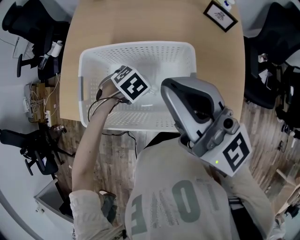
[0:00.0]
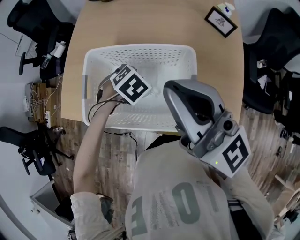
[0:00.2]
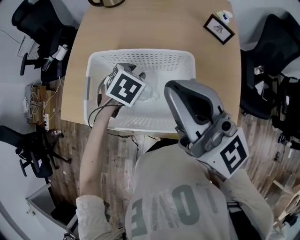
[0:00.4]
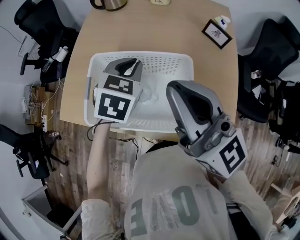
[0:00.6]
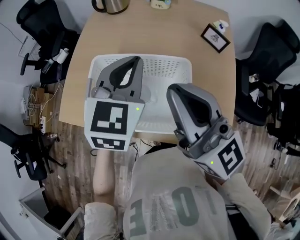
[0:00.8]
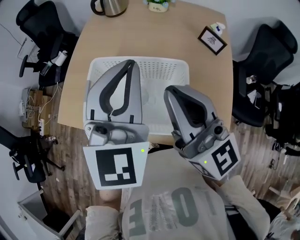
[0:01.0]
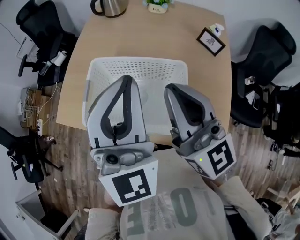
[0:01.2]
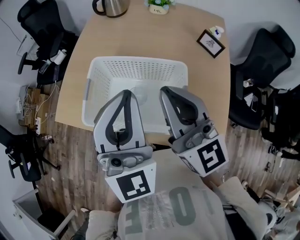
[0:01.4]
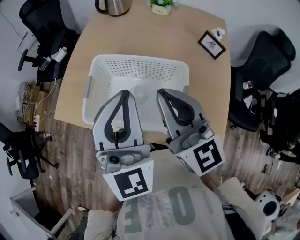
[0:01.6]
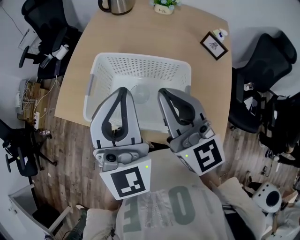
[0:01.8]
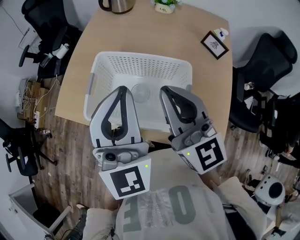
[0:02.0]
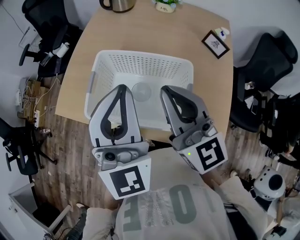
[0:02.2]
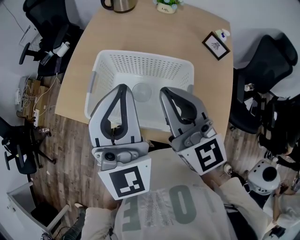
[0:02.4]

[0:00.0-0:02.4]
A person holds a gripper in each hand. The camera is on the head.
0:00.0 to 0:01.2: The left gripper travels upward by roughly 40 cm, angles its fingers upward, by about 90 degrees, and closes.
0:01.2 to 0:02.4: The right gripper shifts by roughly 5 cm.

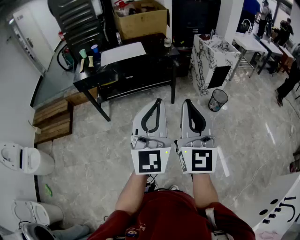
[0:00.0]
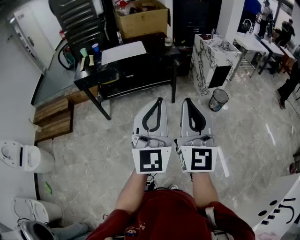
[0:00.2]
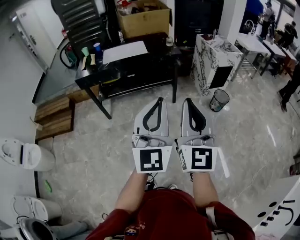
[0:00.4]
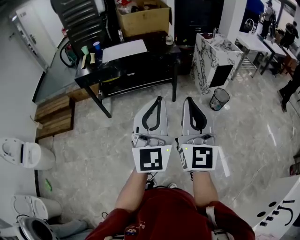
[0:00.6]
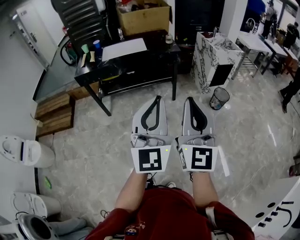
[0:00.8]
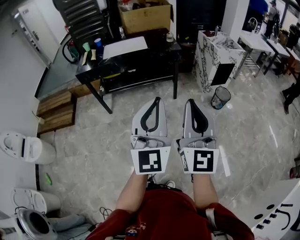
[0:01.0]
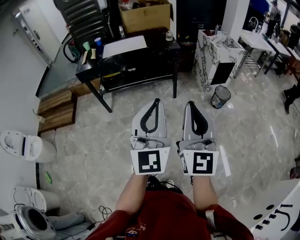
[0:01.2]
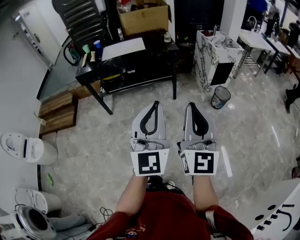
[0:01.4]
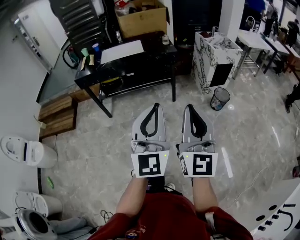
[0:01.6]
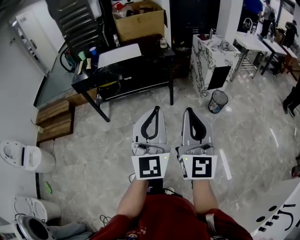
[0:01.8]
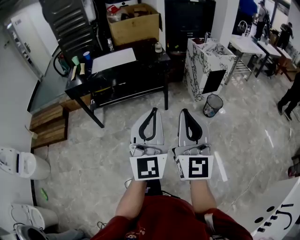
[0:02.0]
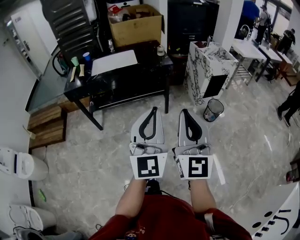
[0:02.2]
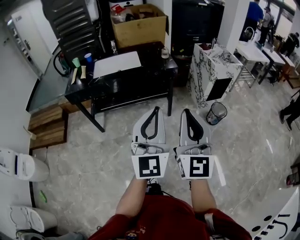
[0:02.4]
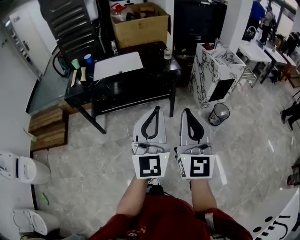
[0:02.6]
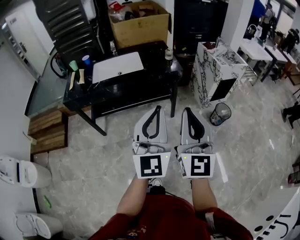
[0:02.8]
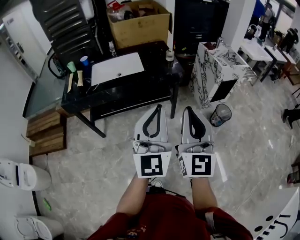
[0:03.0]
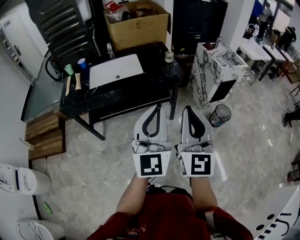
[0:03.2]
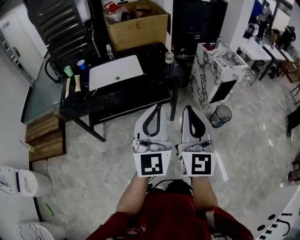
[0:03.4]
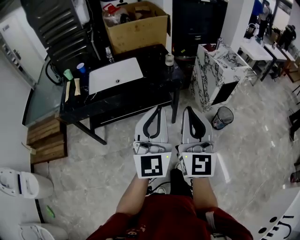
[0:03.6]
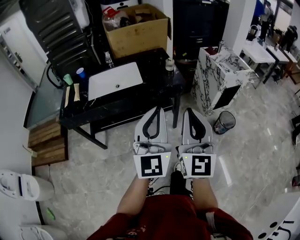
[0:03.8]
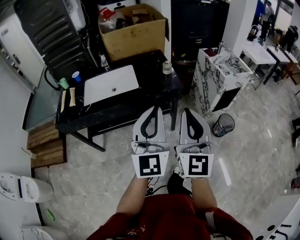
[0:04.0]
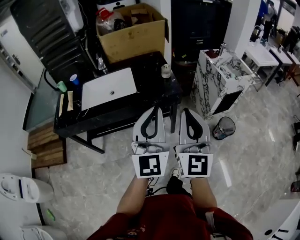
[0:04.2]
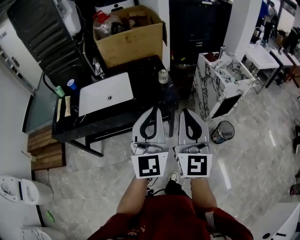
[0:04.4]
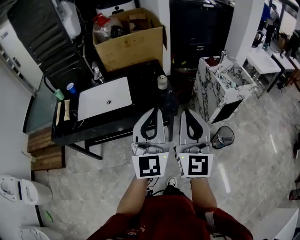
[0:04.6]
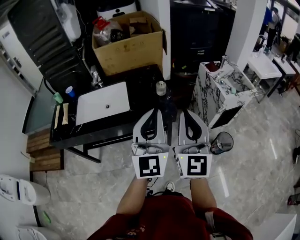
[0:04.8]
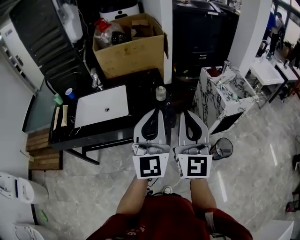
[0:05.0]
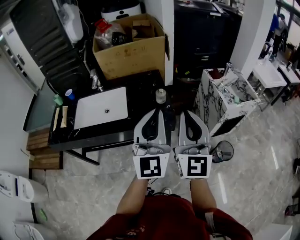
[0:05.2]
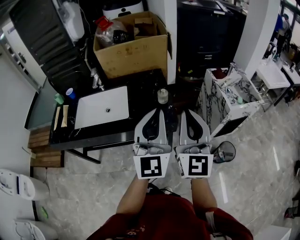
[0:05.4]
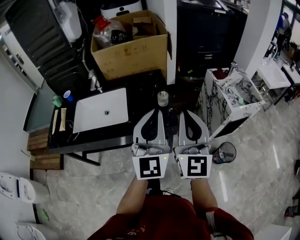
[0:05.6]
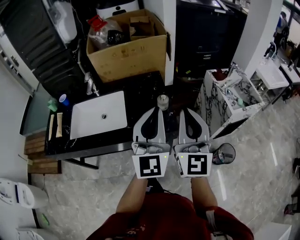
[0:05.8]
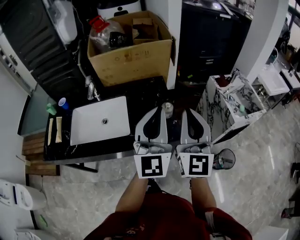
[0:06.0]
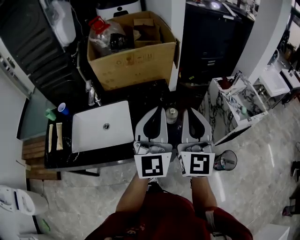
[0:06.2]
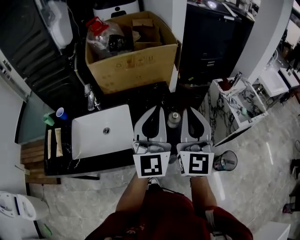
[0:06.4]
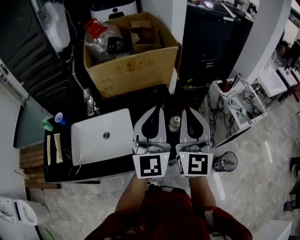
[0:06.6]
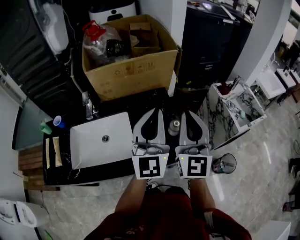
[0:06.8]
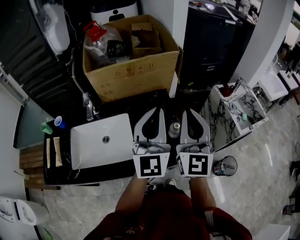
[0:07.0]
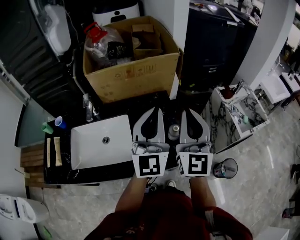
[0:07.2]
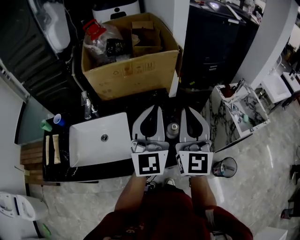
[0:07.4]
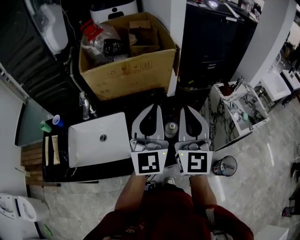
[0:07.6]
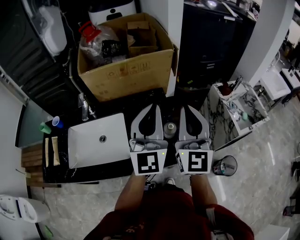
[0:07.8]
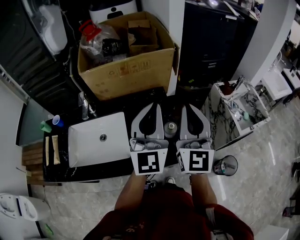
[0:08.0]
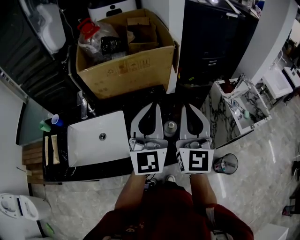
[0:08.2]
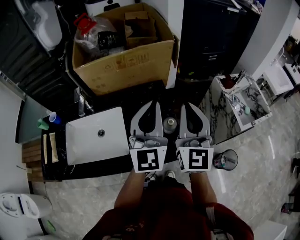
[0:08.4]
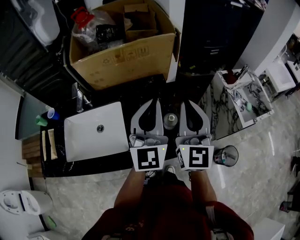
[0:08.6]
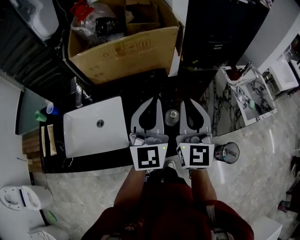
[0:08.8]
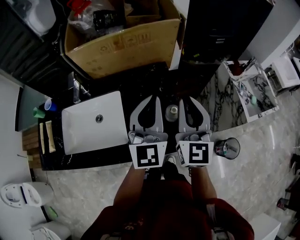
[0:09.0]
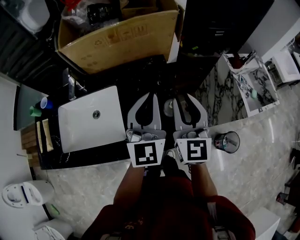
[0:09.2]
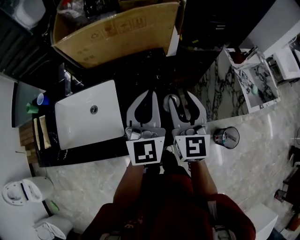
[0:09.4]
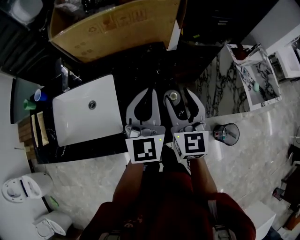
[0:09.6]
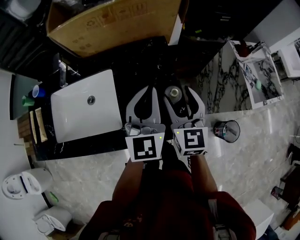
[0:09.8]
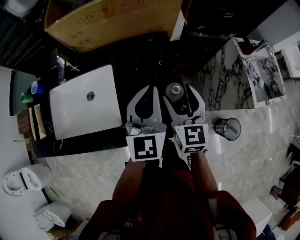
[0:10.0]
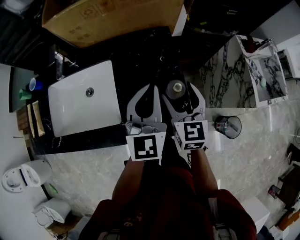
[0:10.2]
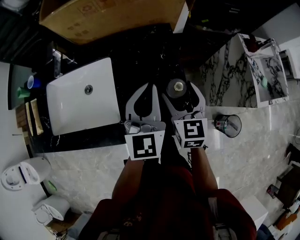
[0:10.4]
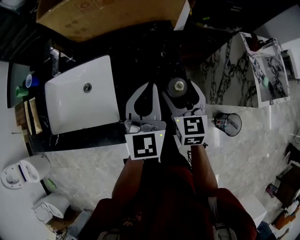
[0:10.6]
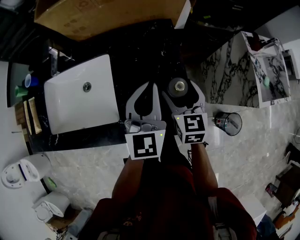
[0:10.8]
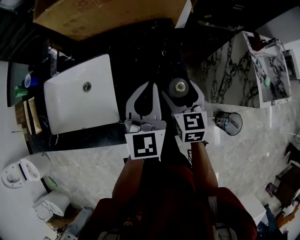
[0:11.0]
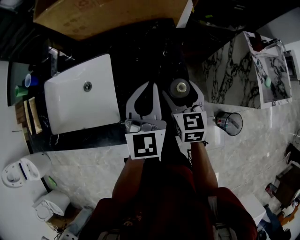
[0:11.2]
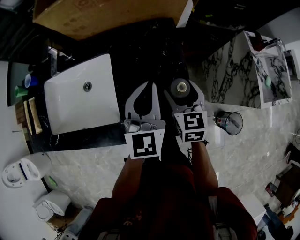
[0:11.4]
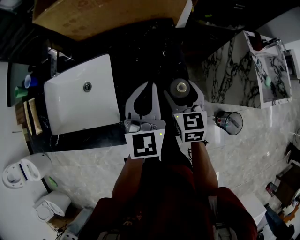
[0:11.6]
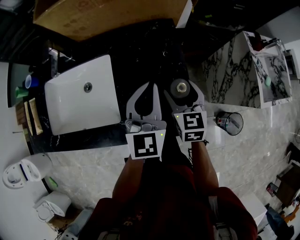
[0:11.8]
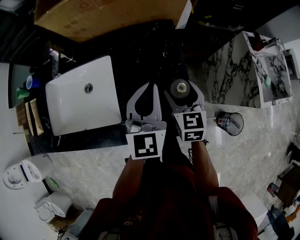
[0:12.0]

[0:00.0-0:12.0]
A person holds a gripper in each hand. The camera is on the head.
0:00.0 to 0:01.6: Both grippers move to the right, approximately 10 cm.
0:01.6 to 0:03.0: The two grippers go about 30 cm forward.
0:03.0 to 0:04.4: The grippers both shift forward by about 25 cm.
0:04.4 to 0:06.0: The two grippers go some 25 cm forward.
0:06.0 to 0:07.6: The grippers both shift forward by about 15 cm.
0:07.6 to 0:09.0: Both grippers travel together downward, approximately 10 cm.
0:09.0 to 0:10.4: The left gripper is displaced downward by some 10 cm; the right gripper shifts some 20 cm downward, changes its angle by approximately 30 degrees, and opens up.
0:10.4 to 0:12.0: The grippers move only a little.

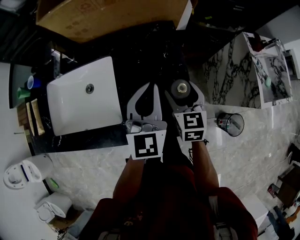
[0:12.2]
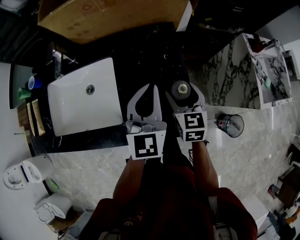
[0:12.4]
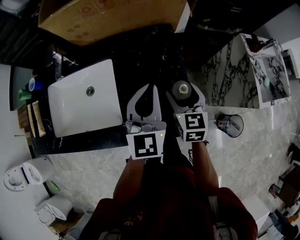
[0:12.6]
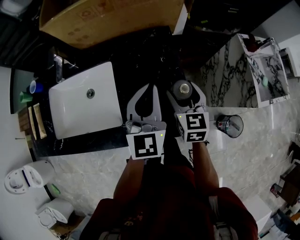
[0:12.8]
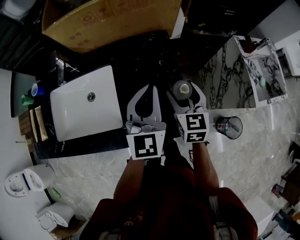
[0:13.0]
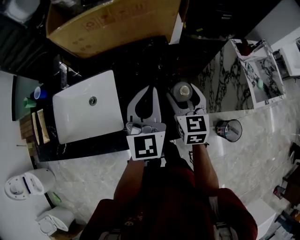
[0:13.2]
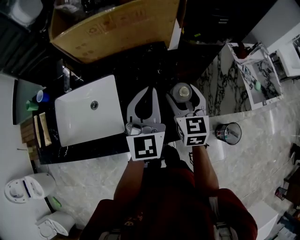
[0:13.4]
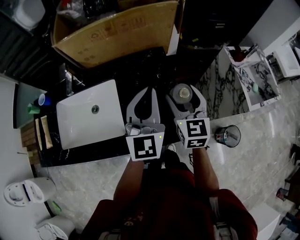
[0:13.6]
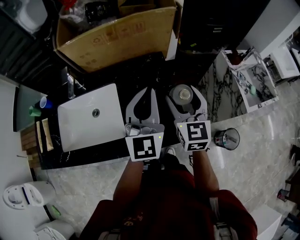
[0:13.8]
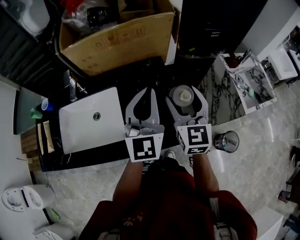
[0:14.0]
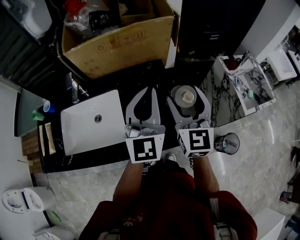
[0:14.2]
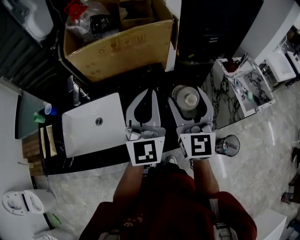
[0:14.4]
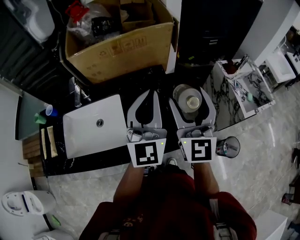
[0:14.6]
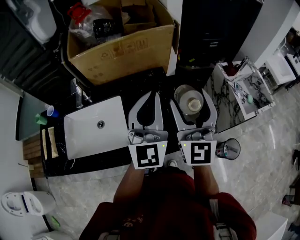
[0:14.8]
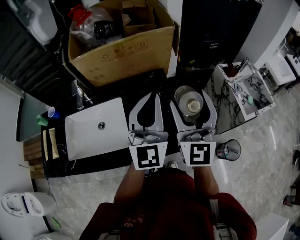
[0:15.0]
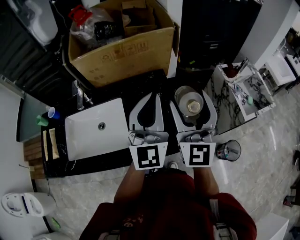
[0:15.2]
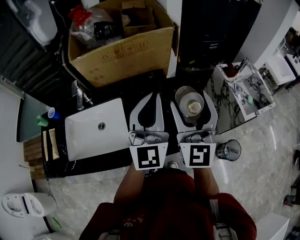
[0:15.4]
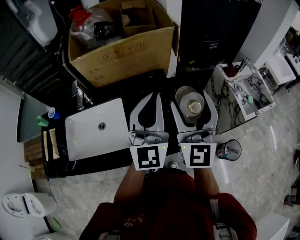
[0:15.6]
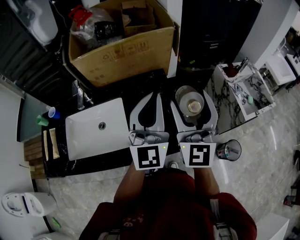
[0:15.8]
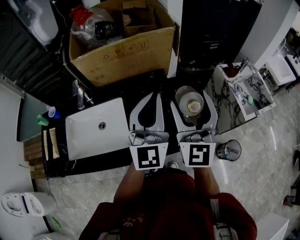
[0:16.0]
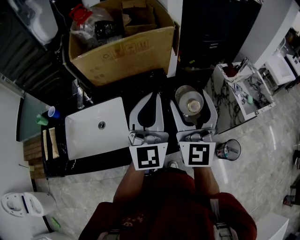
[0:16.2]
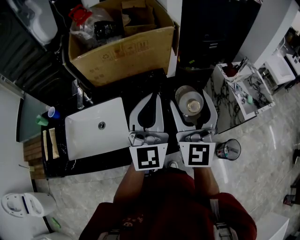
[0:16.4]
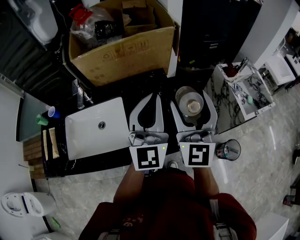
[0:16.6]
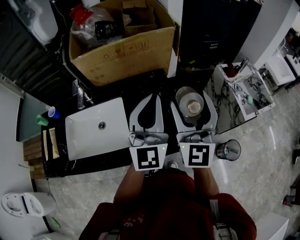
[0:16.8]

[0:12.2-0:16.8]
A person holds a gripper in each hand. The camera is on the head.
0:12.2 to 0:13.8: Both grippers travel together upward, approximately 15 cm.
0:13.8 to 0:15.2: The right gripper is displaced upward by approximately 15 cm, and changes its angle by some 30 degrees. The left gripper travels upward by some 5 cm.
0:15.2 to 0:16.8: Neither gripper changes place.

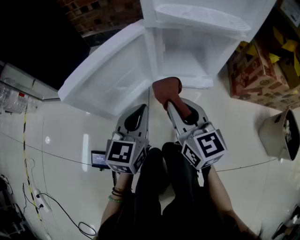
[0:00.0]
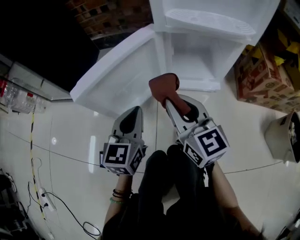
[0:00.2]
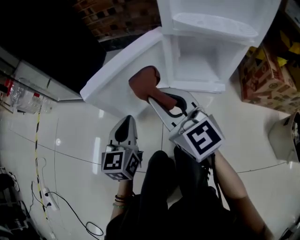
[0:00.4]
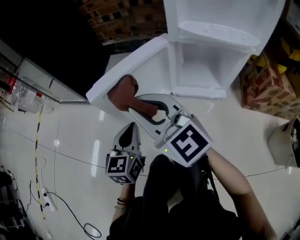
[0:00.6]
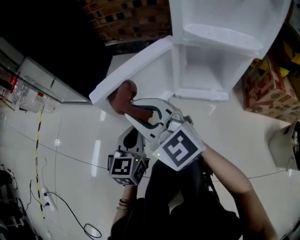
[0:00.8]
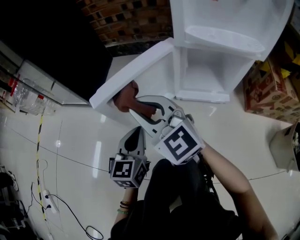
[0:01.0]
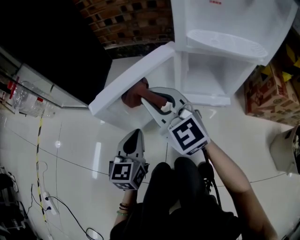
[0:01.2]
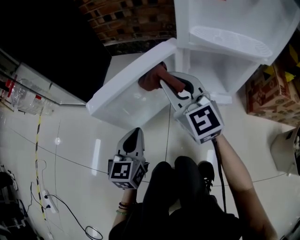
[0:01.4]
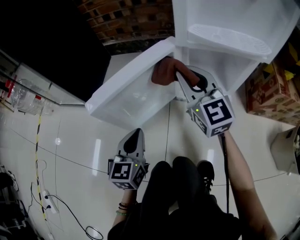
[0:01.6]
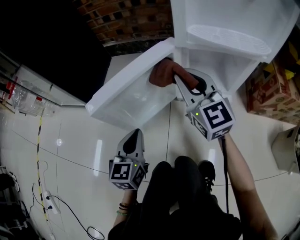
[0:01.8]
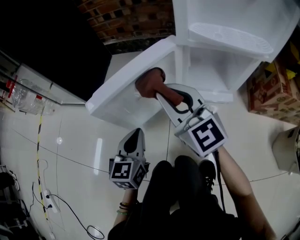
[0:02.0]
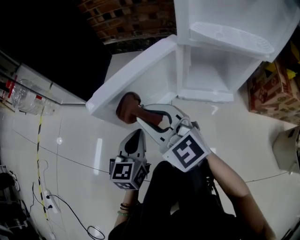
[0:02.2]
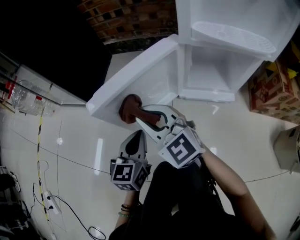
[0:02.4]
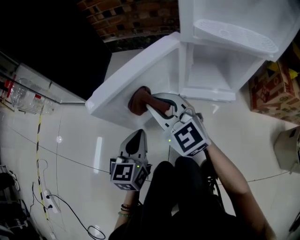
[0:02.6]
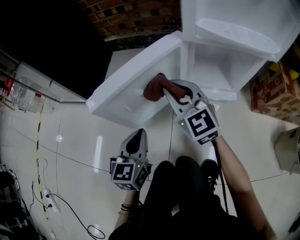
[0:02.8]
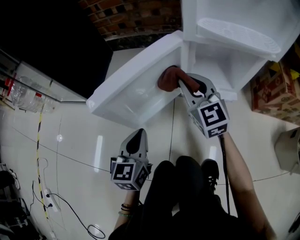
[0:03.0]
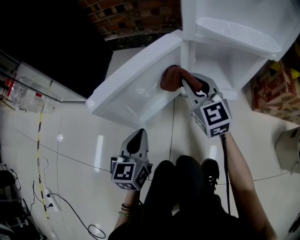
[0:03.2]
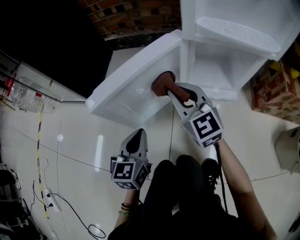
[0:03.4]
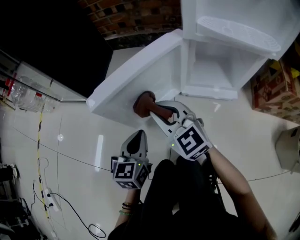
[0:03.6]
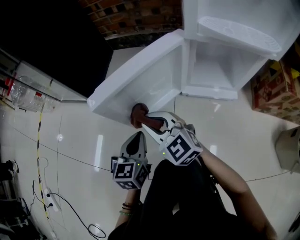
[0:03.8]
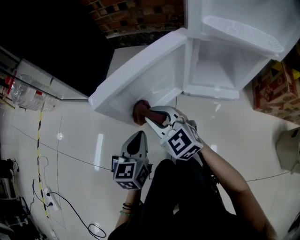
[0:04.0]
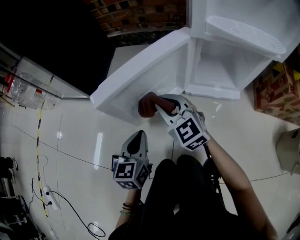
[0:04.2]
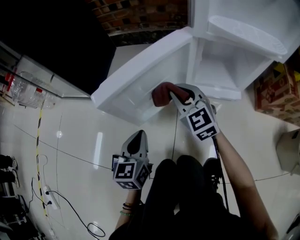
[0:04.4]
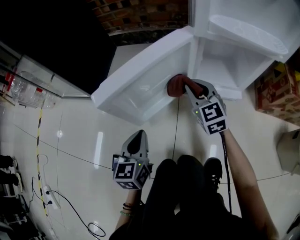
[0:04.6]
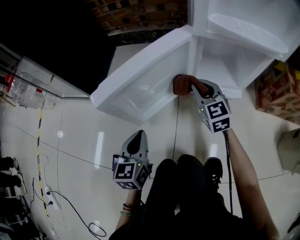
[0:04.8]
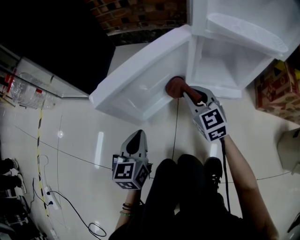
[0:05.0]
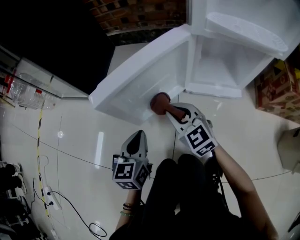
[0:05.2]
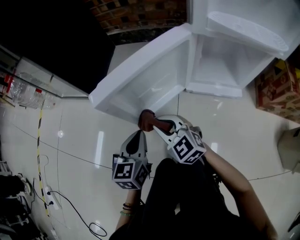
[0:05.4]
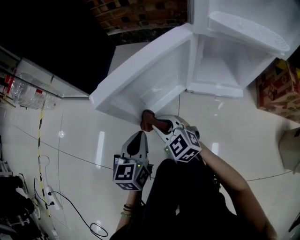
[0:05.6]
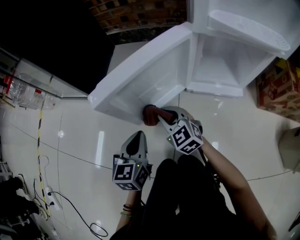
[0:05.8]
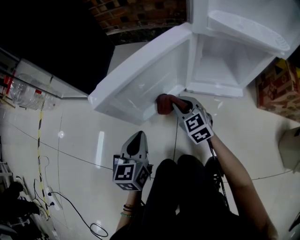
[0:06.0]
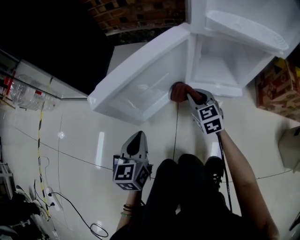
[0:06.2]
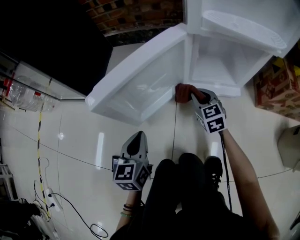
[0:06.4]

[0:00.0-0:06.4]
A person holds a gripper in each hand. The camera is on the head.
0:00.0 to 0:01.6: The right gripper goes approximately 15 cm forward and upward, moves about 20 cm to the left and comes back, and rotates some 20 degrees, while the left gripper goes some 10 cm to the left.
0:01.6 to 0:03.2: The right gripper heads downward, covering some 5 cm, and goes to the left and returns, some 15 cm each way.
0:03.2 to 0:04.8: The right gripper heads downward, covering approximately 10 cm, and travels to the left and back again, some 20 cm each way.
0:04.8 to 0:06.4: The right gripper heads downward, covering about 10 cm, and moves about 20 cm to the left and comes back.
